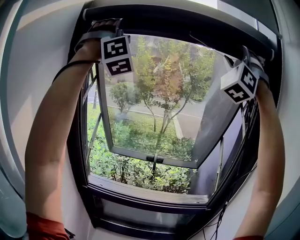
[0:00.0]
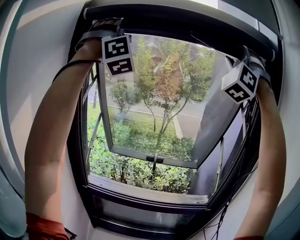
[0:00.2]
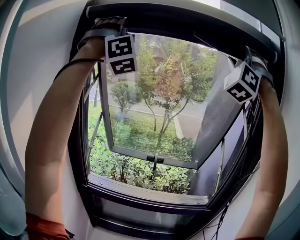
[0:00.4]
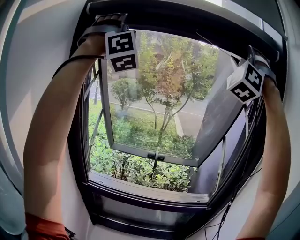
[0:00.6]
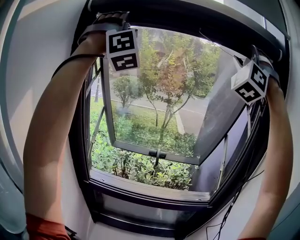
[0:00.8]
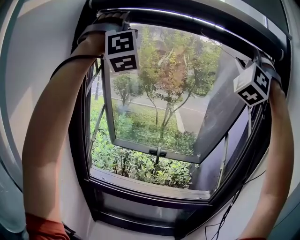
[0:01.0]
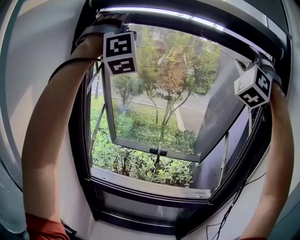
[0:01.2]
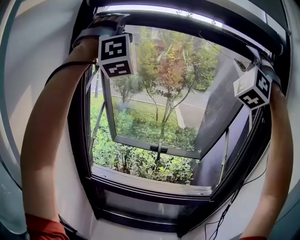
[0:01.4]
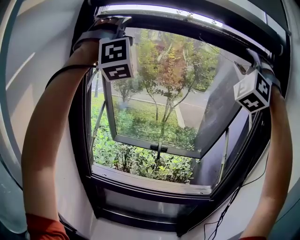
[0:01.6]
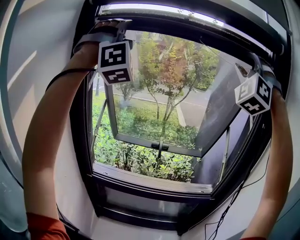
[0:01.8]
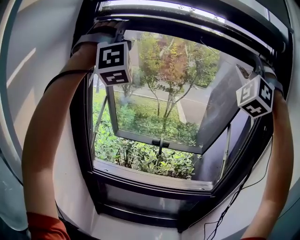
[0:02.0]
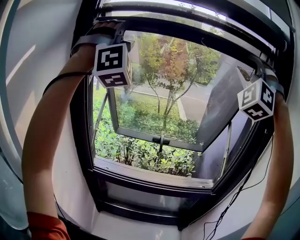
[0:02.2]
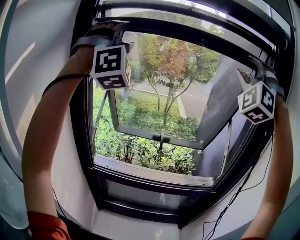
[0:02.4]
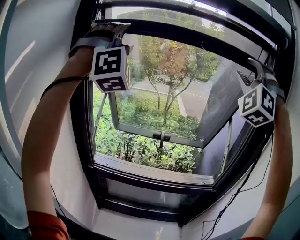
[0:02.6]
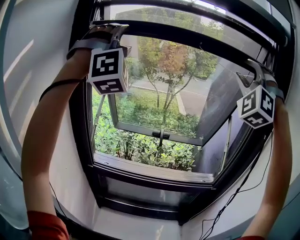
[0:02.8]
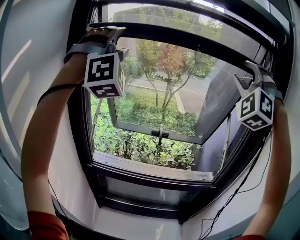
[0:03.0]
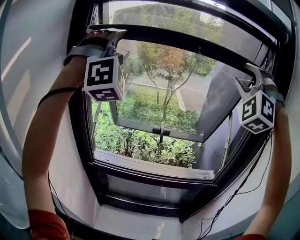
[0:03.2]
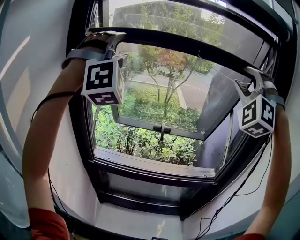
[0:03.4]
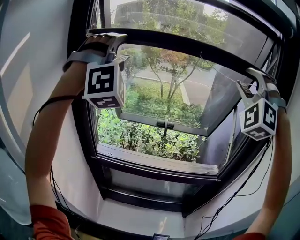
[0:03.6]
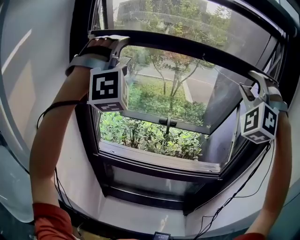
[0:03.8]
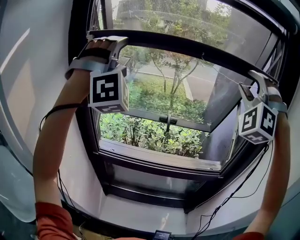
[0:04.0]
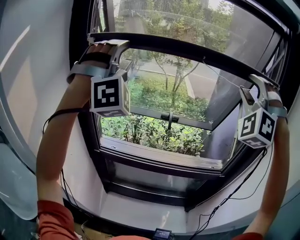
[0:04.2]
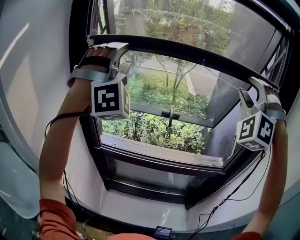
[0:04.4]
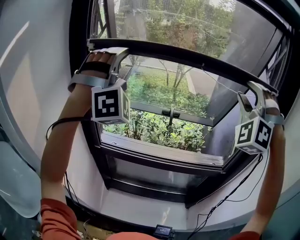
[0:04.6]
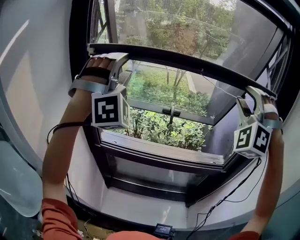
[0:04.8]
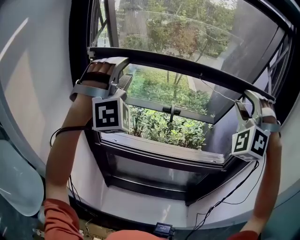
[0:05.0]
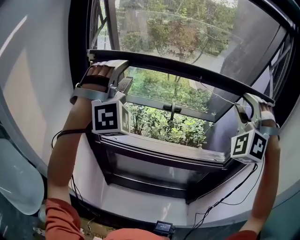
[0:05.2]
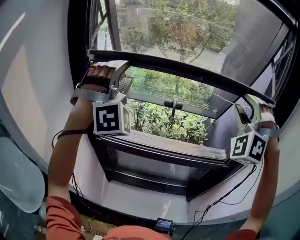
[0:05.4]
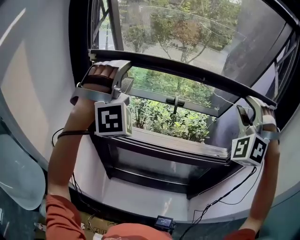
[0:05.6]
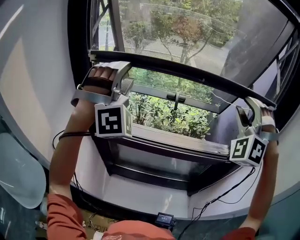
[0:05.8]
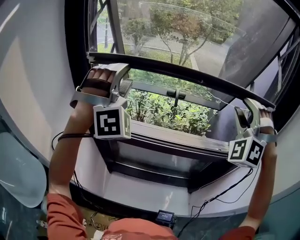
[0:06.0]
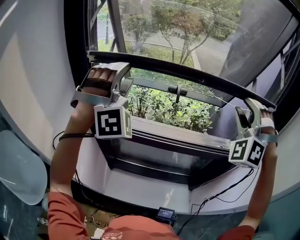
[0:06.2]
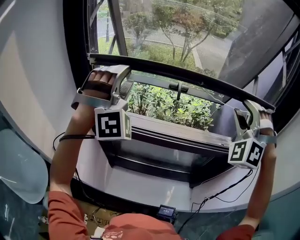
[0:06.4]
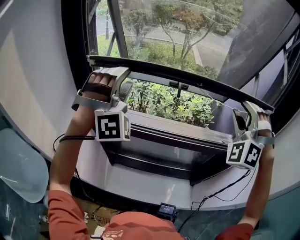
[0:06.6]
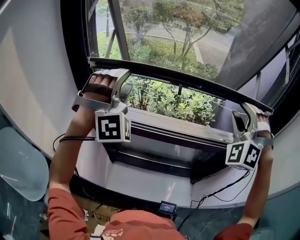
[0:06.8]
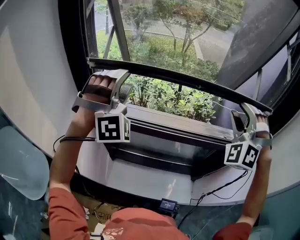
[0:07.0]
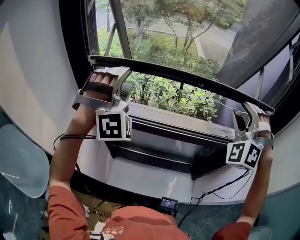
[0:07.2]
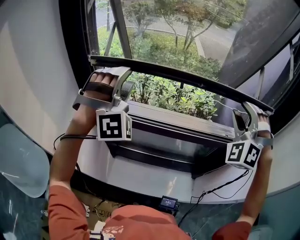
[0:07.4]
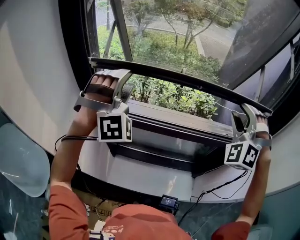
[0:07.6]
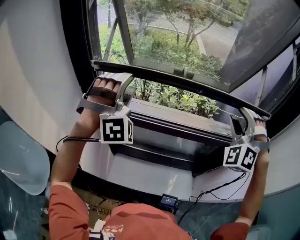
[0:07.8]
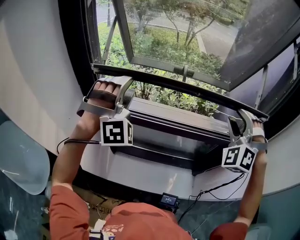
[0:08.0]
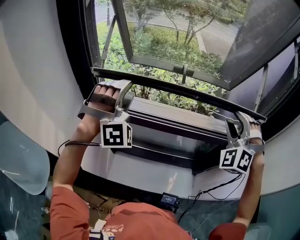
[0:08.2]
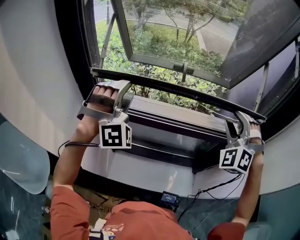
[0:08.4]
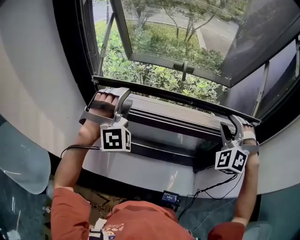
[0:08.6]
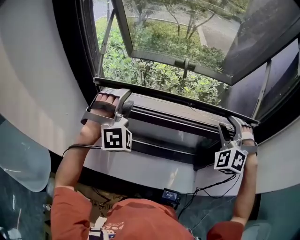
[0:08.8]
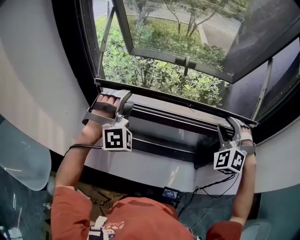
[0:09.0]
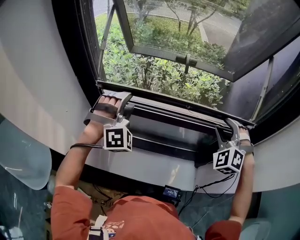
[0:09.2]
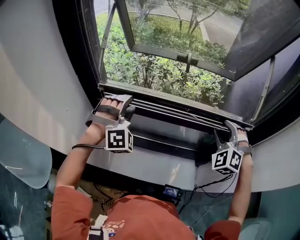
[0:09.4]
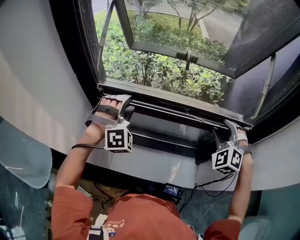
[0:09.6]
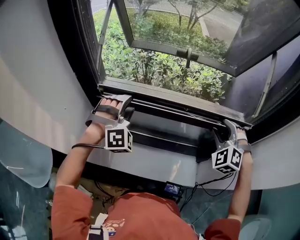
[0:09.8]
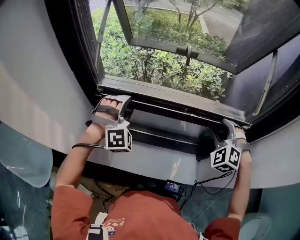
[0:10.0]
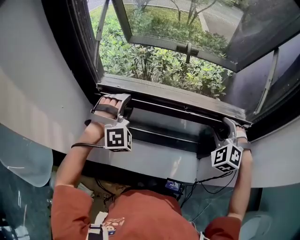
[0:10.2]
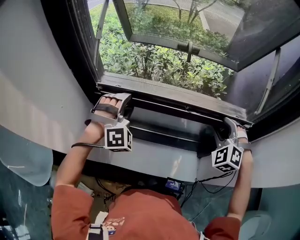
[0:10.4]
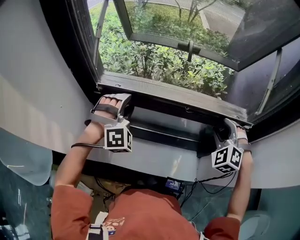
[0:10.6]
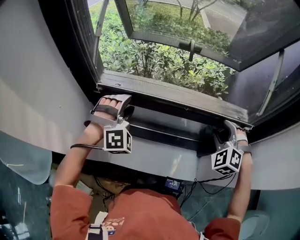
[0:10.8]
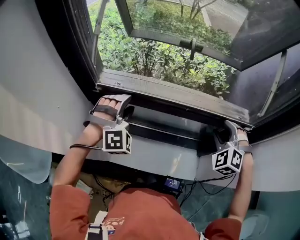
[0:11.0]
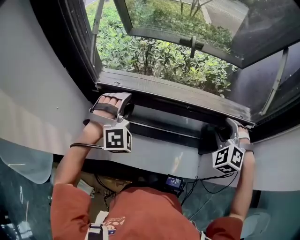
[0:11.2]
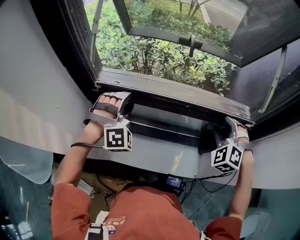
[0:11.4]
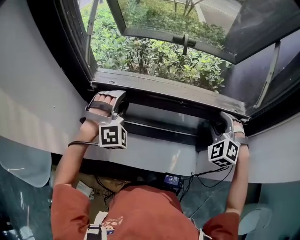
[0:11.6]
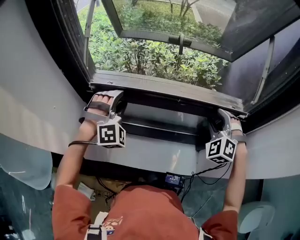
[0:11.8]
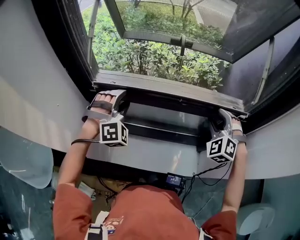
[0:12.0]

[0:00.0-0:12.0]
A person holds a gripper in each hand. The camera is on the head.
0:00.0 to 0:01.6: The grippers both shift downward by about 5 cm.
0:01.6 to 0:03.0: The two grippers go some 10 cm downward.
0:03.0 to 0:04.4: The grippers both shift downward by some 10 cm.
0:04.4 to 0:06.0: The two grippers go roughly 15 cm downward.
0:06.0 to 0:07.6: The two grippers go roughly 10 cm downward.
0:07.6 to 0:09.0: Both grippers travel together downward, some 15 cm.
0:09.0 to 0:10.4: The two grippers go roughly 10 cm downward.
0:10.4 to 0:12.0: The grippers stay close to where they were, moving slightly.

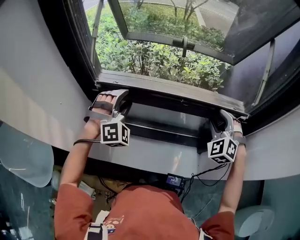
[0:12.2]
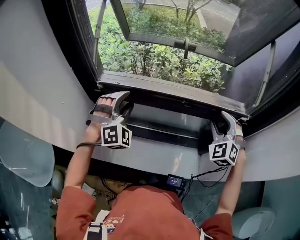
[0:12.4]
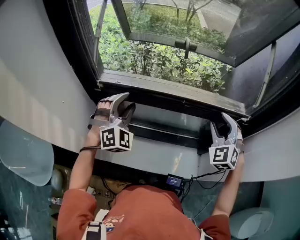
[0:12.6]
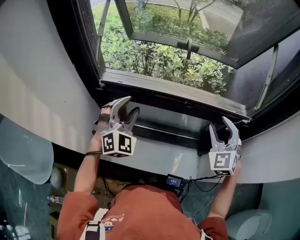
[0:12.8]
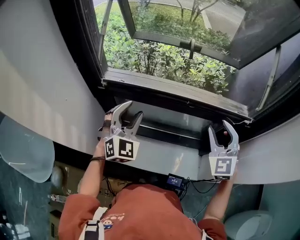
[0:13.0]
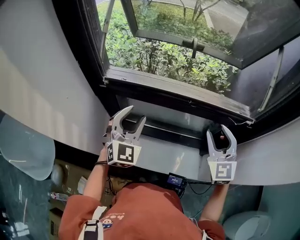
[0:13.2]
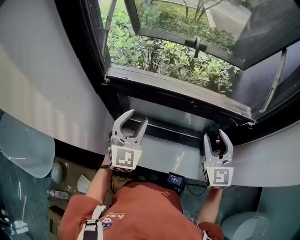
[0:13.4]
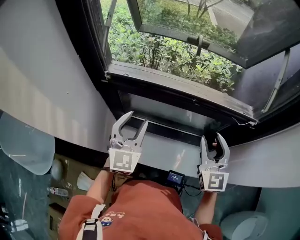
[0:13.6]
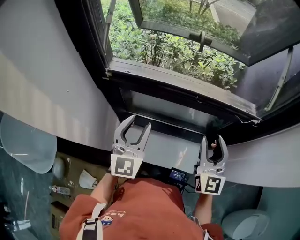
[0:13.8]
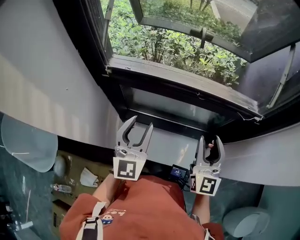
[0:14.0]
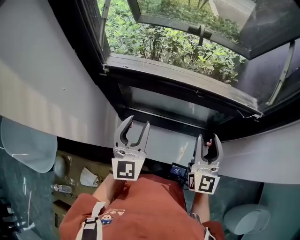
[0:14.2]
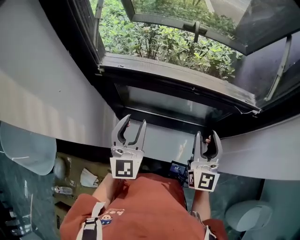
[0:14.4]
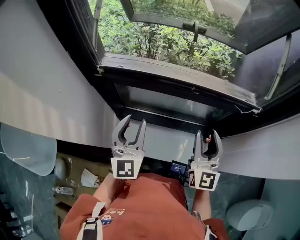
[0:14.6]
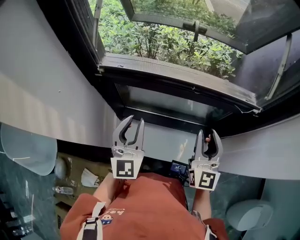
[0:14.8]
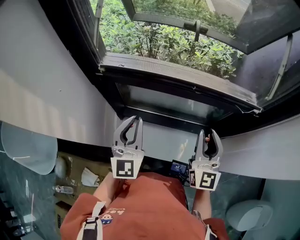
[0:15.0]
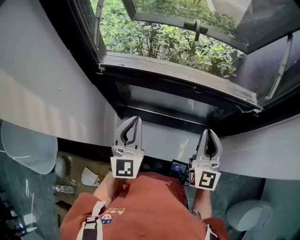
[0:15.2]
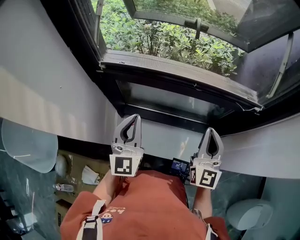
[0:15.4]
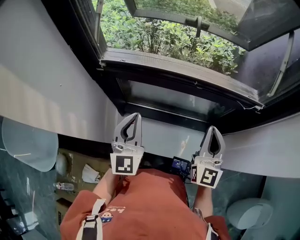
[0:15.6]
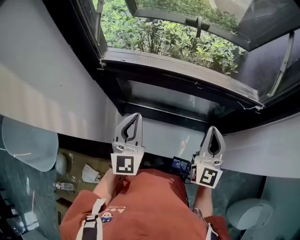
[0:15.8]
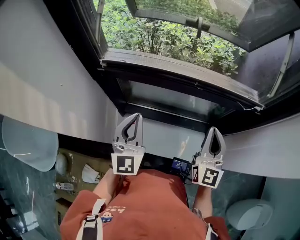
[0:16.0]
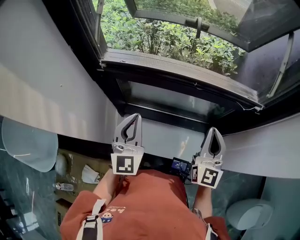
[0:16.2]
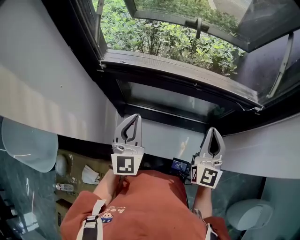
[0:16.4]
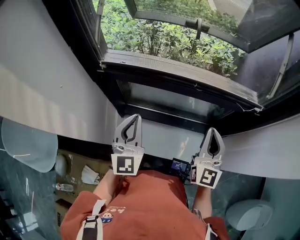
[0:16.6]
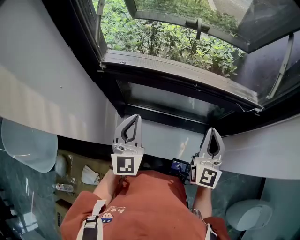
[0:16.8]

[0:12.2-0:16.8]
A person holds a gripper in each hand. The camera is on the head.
0:12.2 to 0:13.8: The right gripper goes roughly 10 cm backward and to the left, and rolls clockwise, seen from behind, by about 50 degrees; the left gripper moves backward, about 10 cm, and rotates around the line of its fingers by some 70 degrees, counterclockwise from behind.
0:13.8 to 0:15.2: The right gripper closes up. The left gripper closes.
0:15.2 to 0:16.8: There are only small adjustments of the grippers.

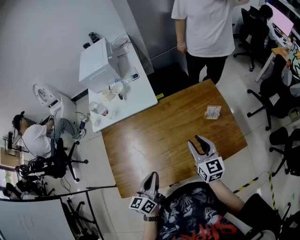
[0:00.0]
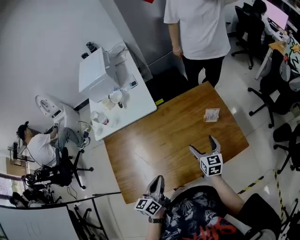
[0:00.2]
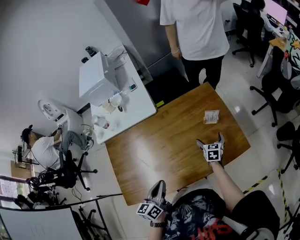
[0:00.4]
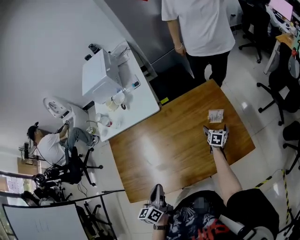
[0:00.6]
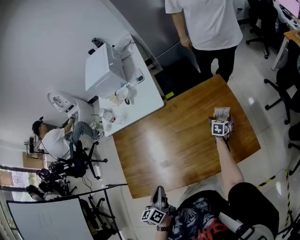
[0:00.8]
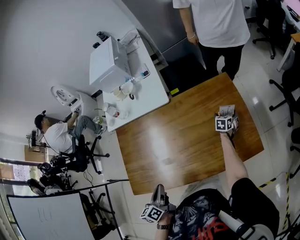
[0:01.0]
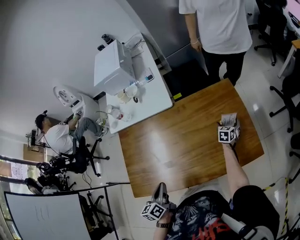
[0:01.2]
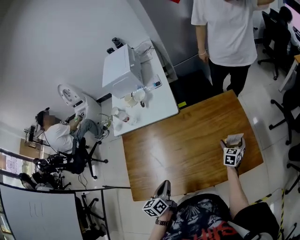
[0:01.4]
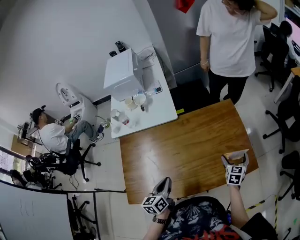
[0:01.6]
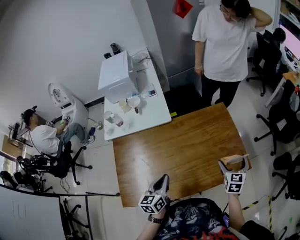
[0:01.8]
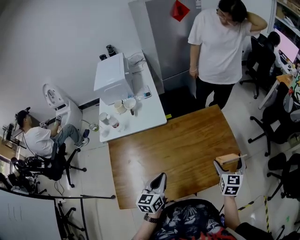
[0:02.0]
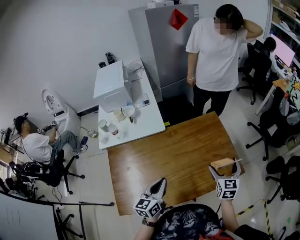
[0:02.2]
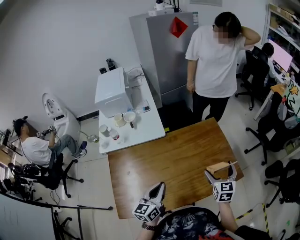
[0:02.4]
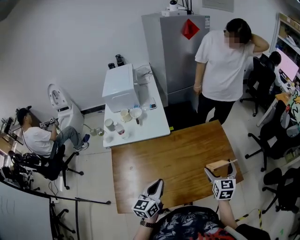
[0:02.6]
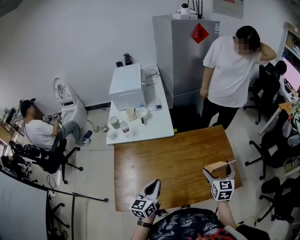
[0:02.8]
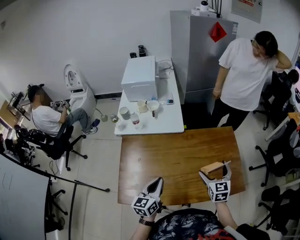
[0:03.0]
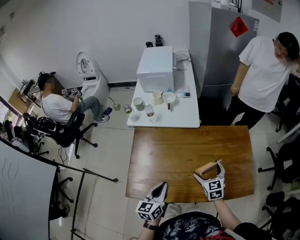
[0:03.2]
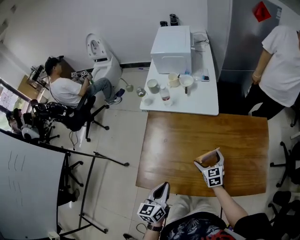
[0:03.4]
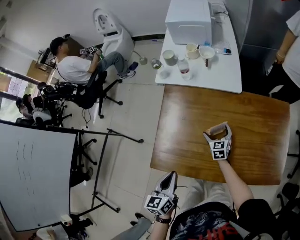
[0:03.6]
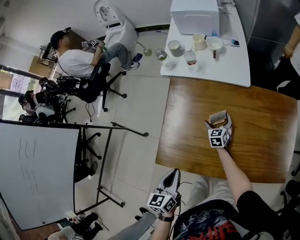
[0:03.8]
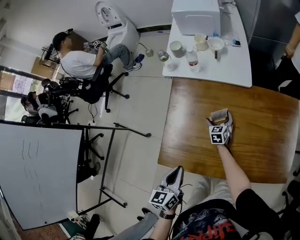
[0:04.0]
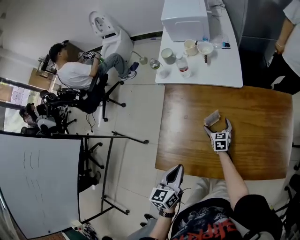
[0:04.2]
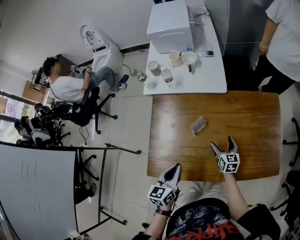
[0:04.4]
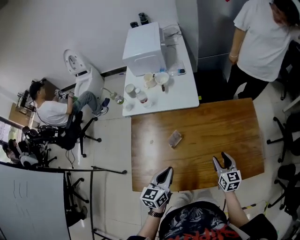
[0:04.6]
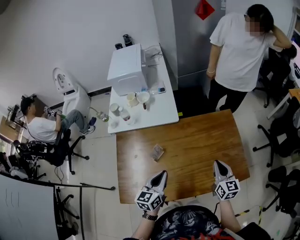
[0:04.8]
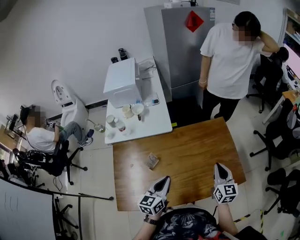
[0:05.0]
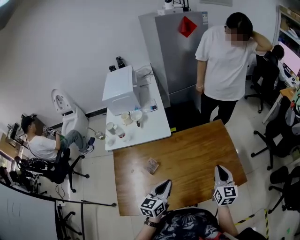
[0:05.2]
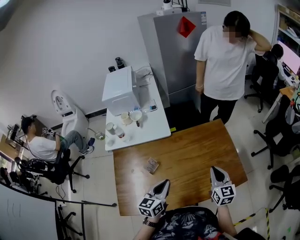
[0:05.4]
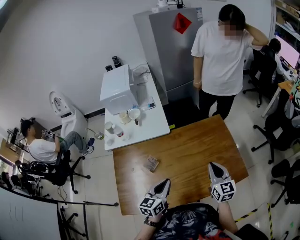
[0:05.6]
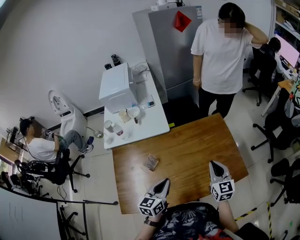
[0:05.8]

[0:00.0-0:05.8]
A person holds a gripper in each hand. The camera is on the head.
0:00.0 to 0:01.4: The left gripper moves downward, approximately 5 cm, and swivels about 20 degrees, while the right gripper goes about 30 cm downward, to the right and forward, rotates roughly 40 degrees, and opens.
0:01.4 to 0:02.8: The left gripper shifts about 10 cm upward, and changes its angle by some 30 degrees. The right gripper heads upward, covering some 25 cm, and rotates roughly 20 degrees.
0:02.8 to 0:04.4: The right gripper moves downward, about 25 cm, and swivels some 30 degrees.
0:04.4 to 0:05.8: The right gripper goes roughly 30 cm to the right and upward, turns by roughly 30 degrees, and closes up; the left gripper moves to the right and forward, approximately 20 cm, and rotates approximately 20 degrees.

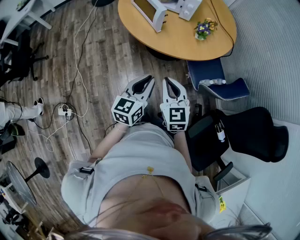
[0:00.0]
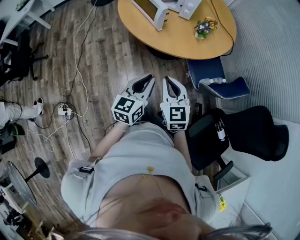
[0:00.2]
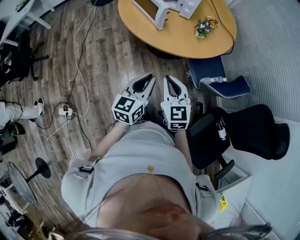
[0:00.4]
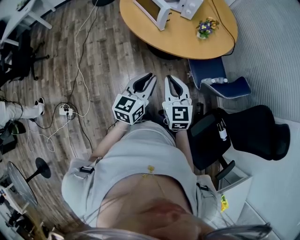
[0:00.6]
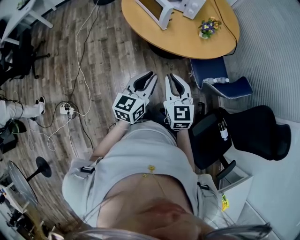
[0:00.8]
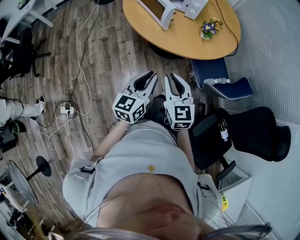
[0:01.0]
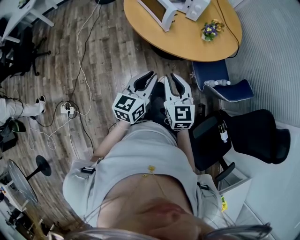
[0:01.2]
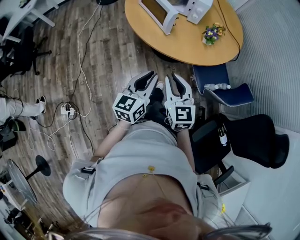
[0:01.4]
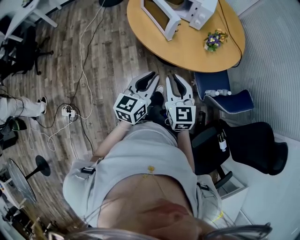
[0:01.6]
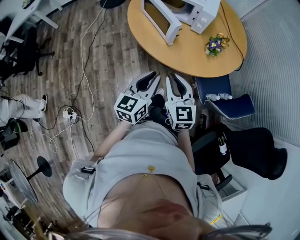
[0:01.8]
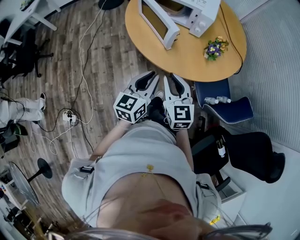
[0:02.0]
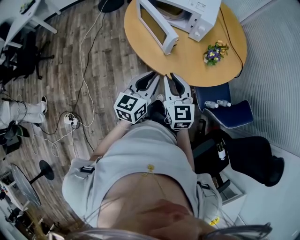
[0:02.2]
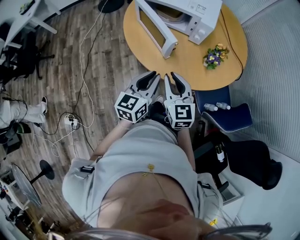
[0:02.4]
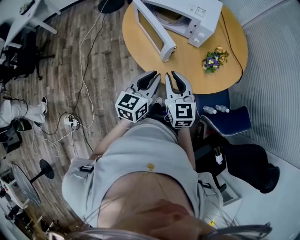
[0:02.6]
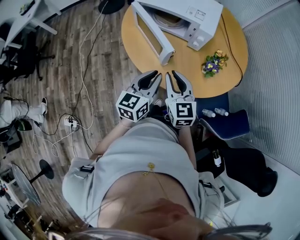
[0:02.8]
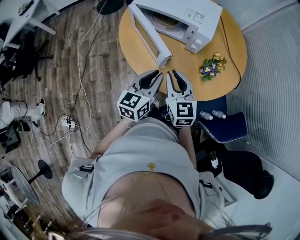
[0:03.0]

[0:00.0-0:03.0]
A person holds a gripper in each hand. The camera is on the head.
0:00.0 to 0:01.6: Both grippers travel together forward, approximately 5 cm.
0:01.6 to 0:03.0: Both grippers travel together forward, roughly 20 cm.
